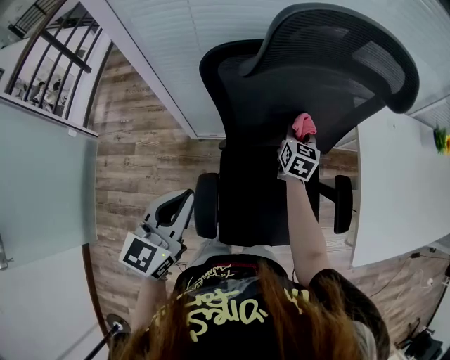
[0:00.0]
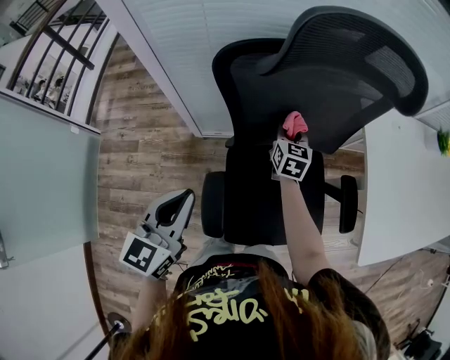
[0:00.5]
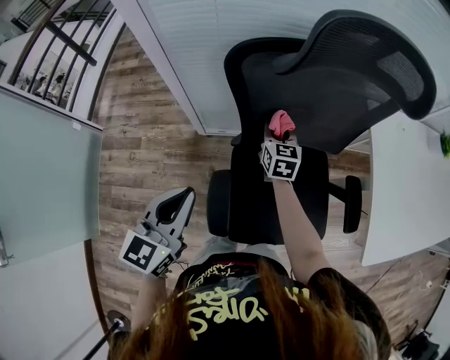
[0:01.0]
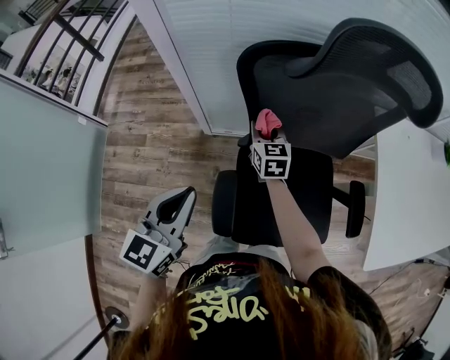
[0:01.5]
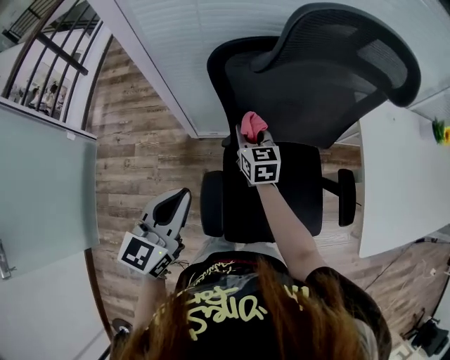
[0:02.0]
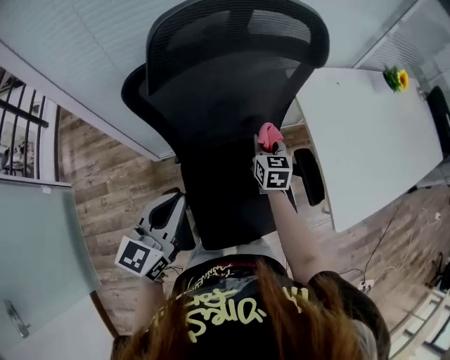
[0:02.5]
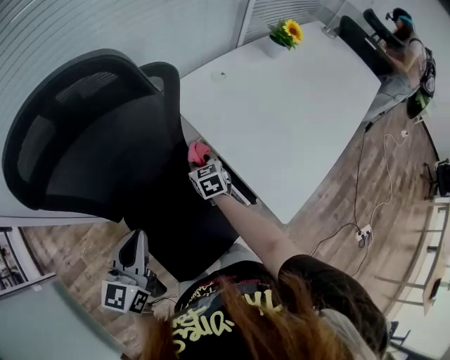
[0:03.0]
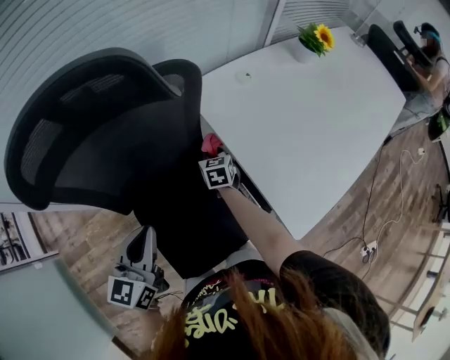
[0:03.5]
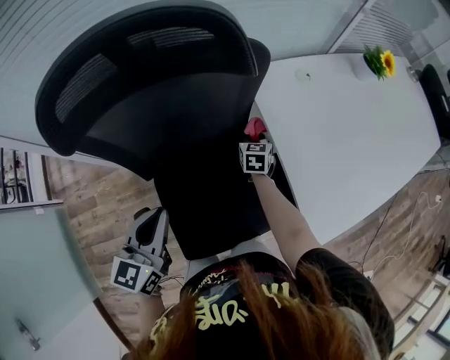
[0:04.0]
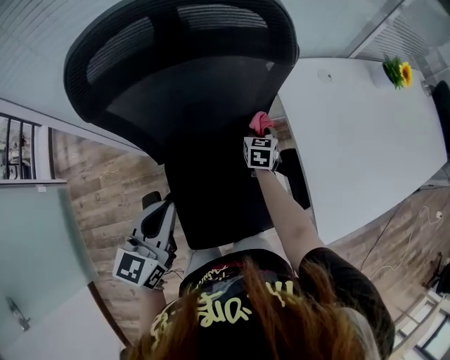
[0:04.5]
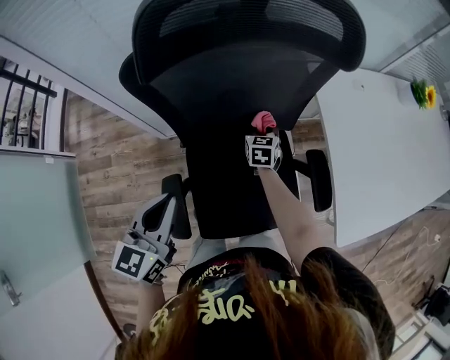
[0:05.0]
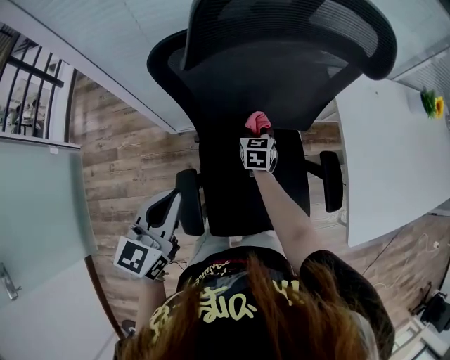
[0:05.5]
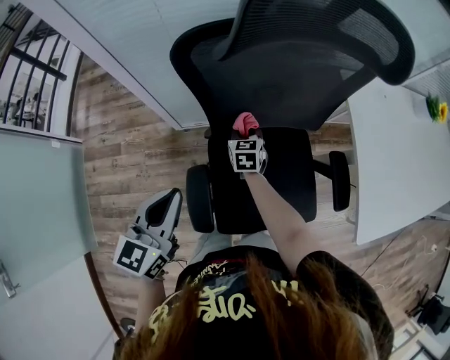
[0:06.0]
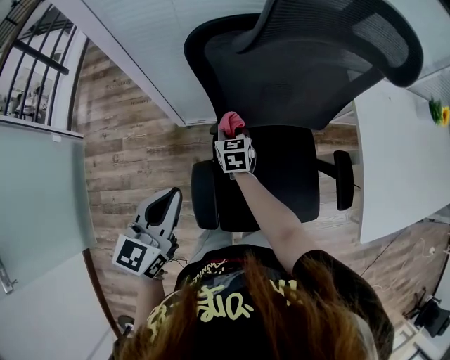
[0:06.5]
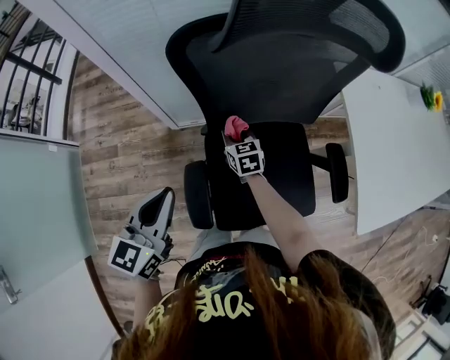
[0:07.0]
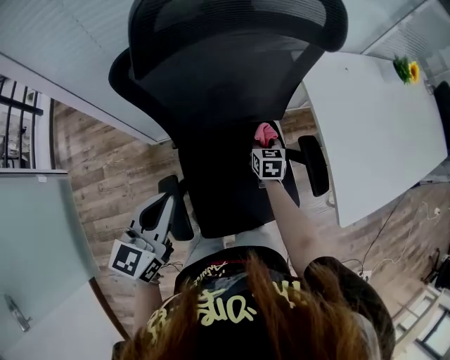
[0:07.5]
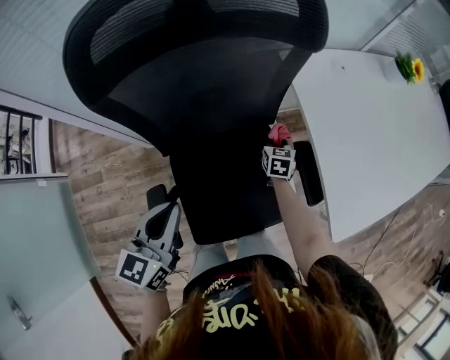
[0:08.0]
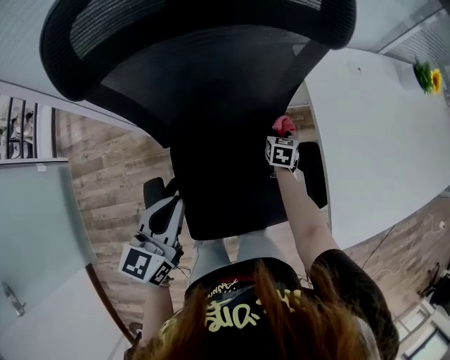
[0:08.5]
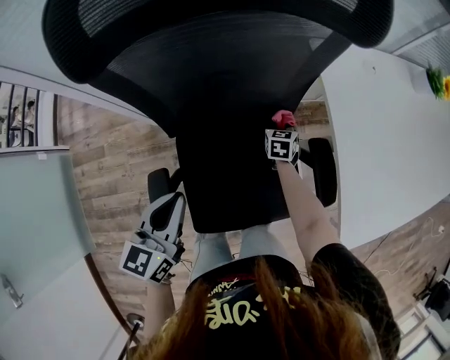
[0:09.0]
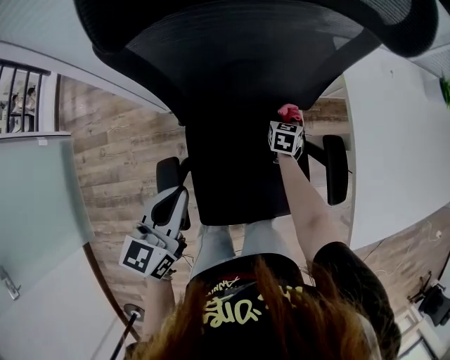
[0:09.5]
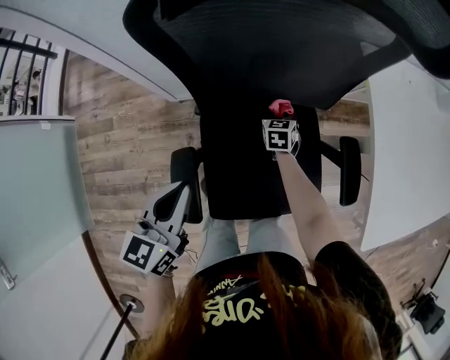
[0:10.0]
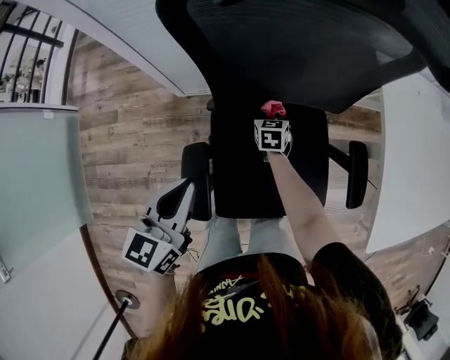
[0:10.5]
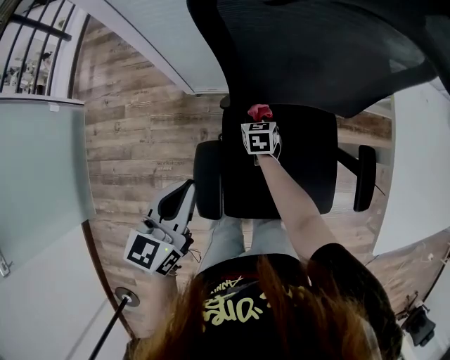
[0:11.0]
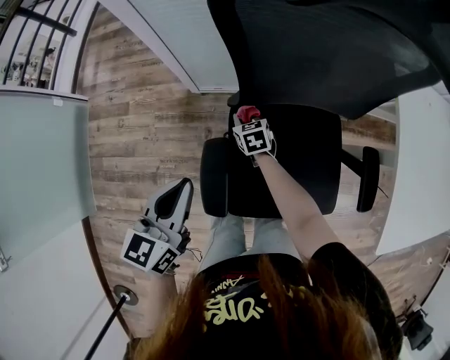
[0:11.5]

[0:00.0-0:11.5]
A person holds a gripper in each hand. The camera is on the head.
0:00.0 to 0:02.0: The right gripper goes approximately 20 cm to the left, and turns by some 20 degrees.
0:02.0 to 0:04.0: The left gripper moves approximately 25 cm, while the right gripper ends up approximately 40 cm from where it was, and turns by roughly 40 degrees.
0:04.0 to 0:06.0: The left gripper travels to the left and backward by roughly 20 cm. Meanwhile the right gripper shifts some 30 cm to the left, and rotates approximately 20 degrees.
0:06.0 to 0:07.5: The left gripper goes roughly 10 cm to the right. Meanwhile the right gripper heads to the right, covering approximately 20 cm.
0:07.5 to 0:09.5: The left gripper travels downward by about 5 cm; the right gripper is displaced downward and forward by some 10 cm.
0:09.5 to 0:11.5: The right gripper shifts by approximately 35 cm, and rotates approximately 40 degrees; the left gripper ends up some 15 cm from where it was.

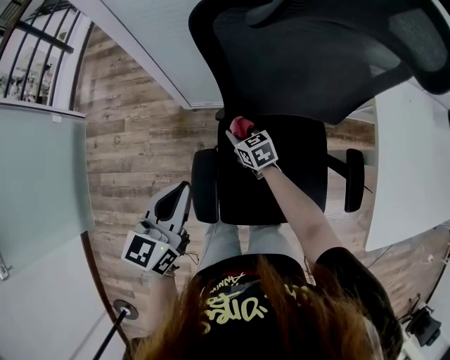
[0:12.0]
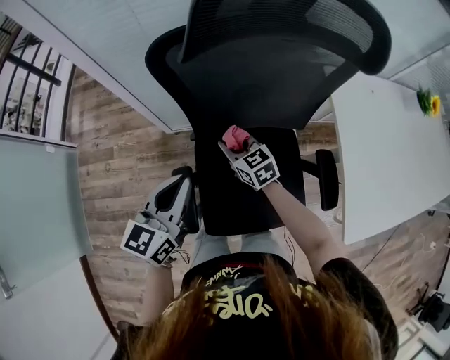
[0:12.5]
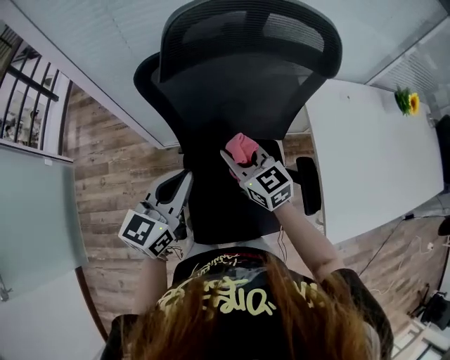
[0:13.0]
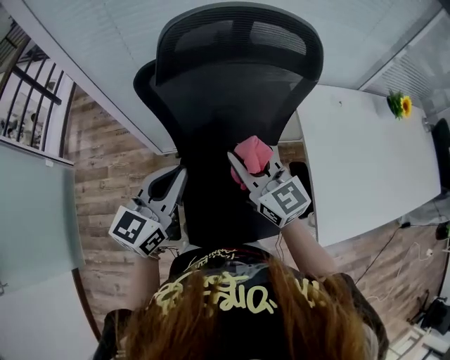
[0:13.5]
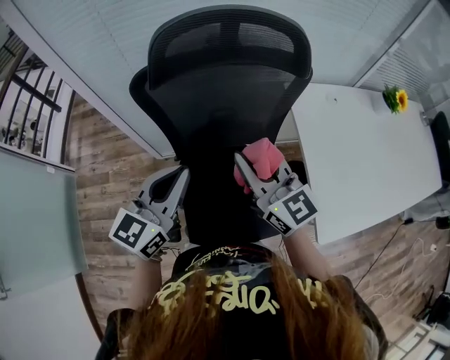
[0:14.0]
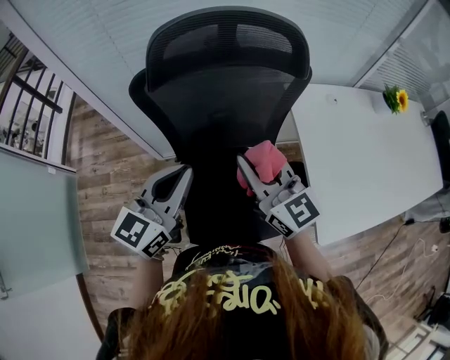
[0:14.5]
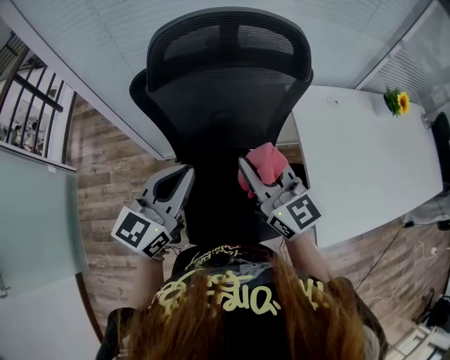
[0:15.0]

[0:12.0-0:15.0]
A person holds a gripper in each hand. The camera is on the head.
0:12.0 to 0:13.5: The right gripper shifts some 40 cm upward and to the right, and tips its fingers upward by some 40 degrees, while the left gripper is displaced to the right and upward by some 20 cm.
0:13.5 to 0:15.0: The right gripper moves some 5 cm.

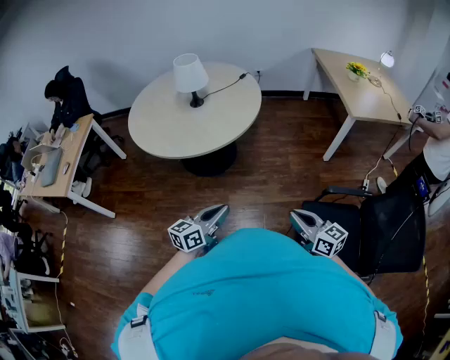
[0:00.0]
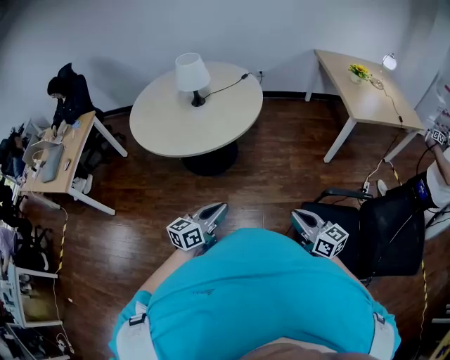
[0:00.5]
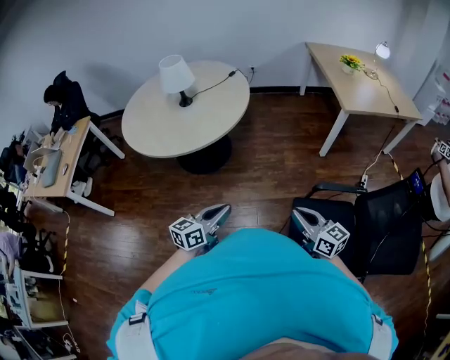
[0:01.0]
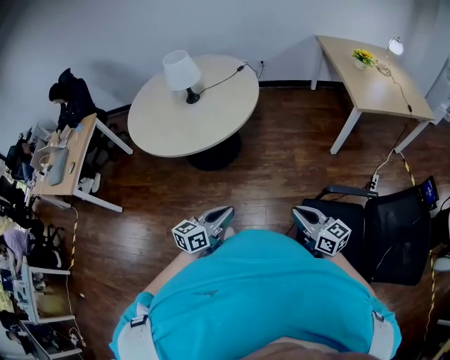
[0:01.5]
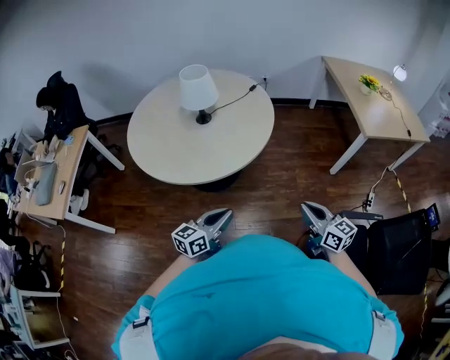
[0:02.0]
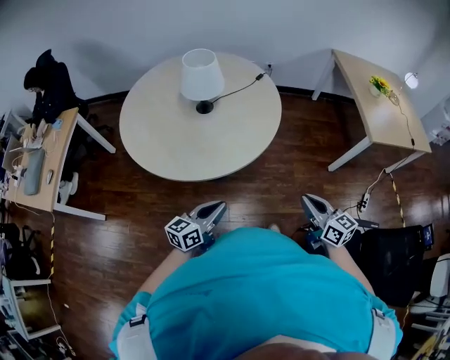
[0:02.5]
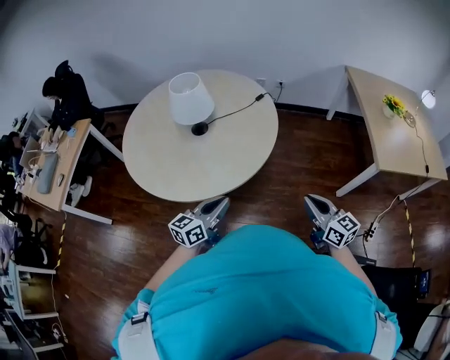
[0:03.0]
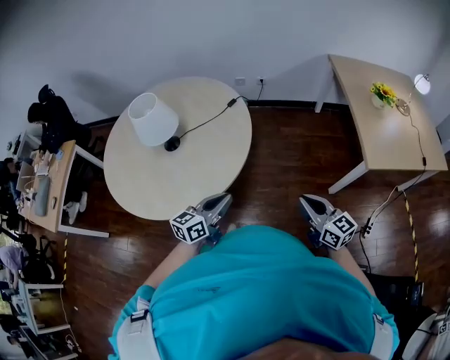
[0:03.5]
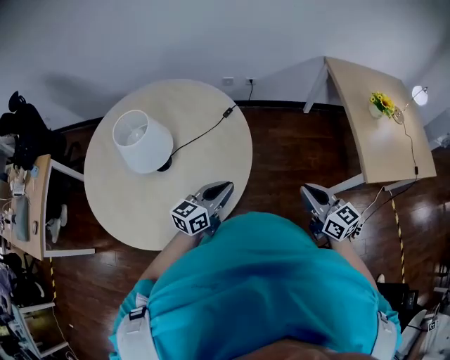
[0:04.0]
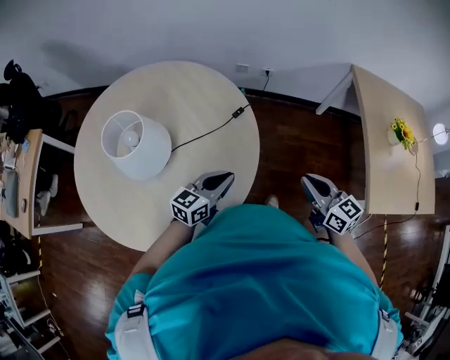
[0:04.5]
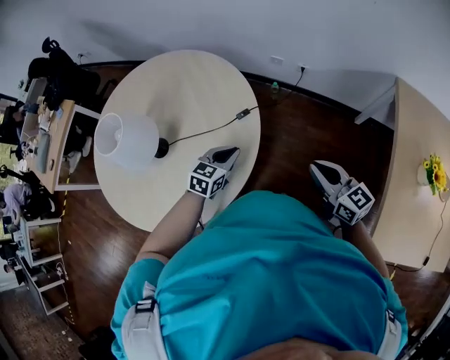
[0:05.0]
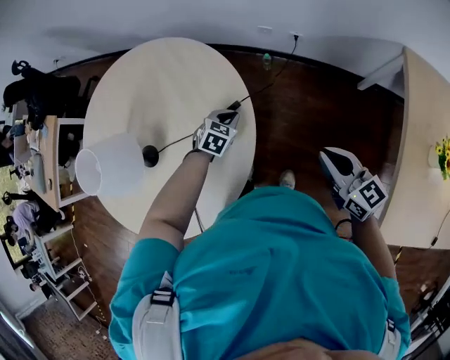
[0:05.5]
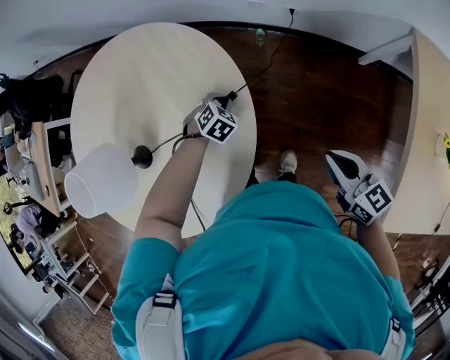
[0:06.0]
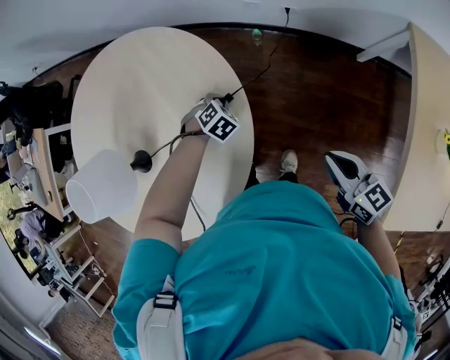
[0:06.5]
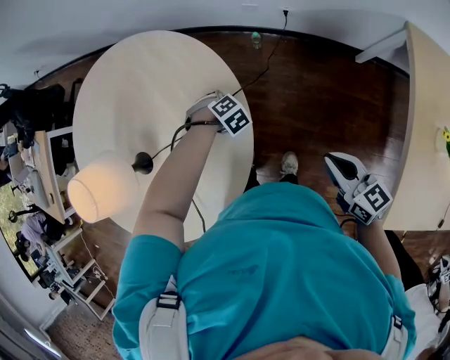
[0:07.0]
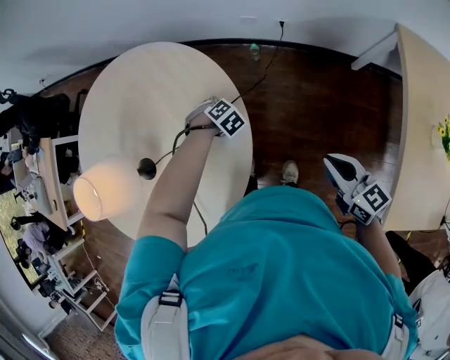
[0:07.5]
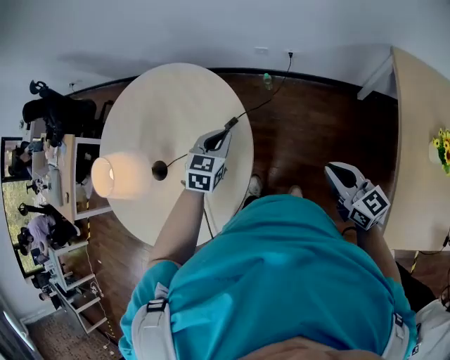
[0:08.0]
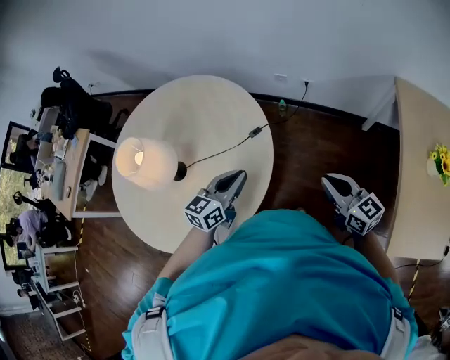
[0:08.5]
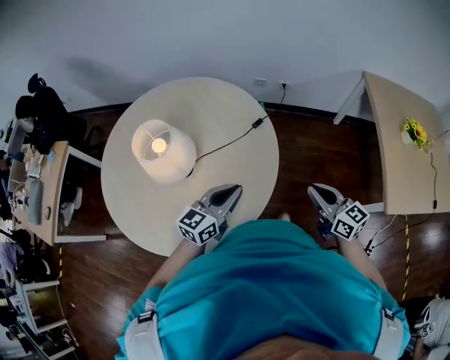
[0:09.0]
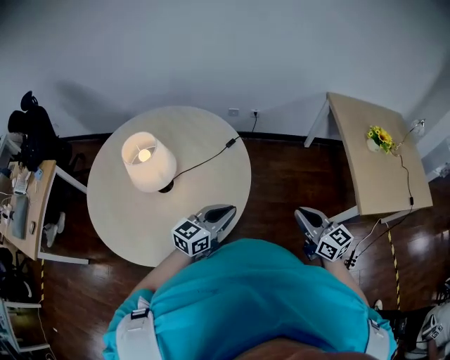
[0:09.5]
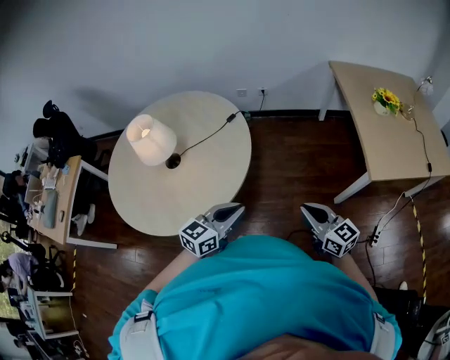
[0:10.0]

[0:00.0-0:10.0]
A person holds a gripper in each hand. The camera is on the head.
0:00.0 to 0:02.0: The left gripper moves forward and to the left, some 20 cm, while the right gripper shifts about 20 cm forward.
0:02.0 to 0:04.0: The two grippers travel together, forward, some 60 cm.
0:04.0 to 0:06.0: The pair of grippers is taken about 50 cm. The right gripper swivels roughly 20 degrees. Meanwhile the left gripper points its fingers approximately 70 degrees further downward.
0:06.0 to 0:08.0: The left gripper heads upward, covering roughly 30 cm, and tilts its fingers about 30 degrees upward, while the right gripper travels upward by roughly 15 cm.
0:08.0 to 0:10.0: The pair of grippers is taken backward, about 70 cm. The left gripper angles its fingers upward, by some 30 degrees.

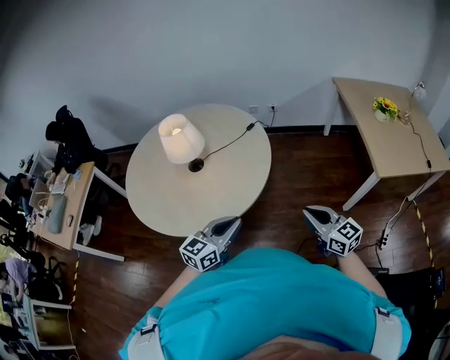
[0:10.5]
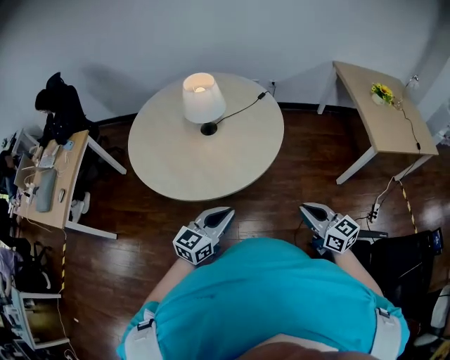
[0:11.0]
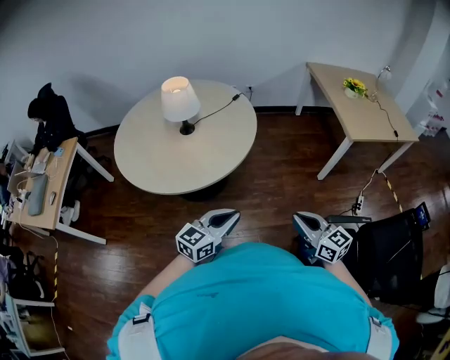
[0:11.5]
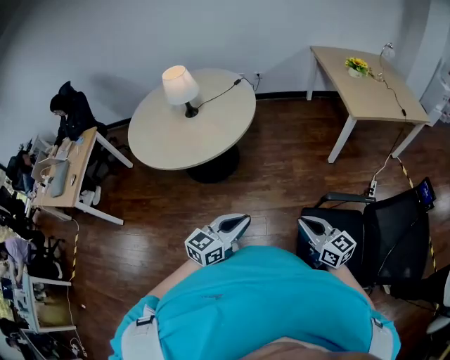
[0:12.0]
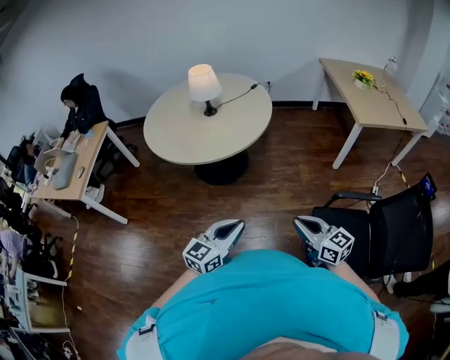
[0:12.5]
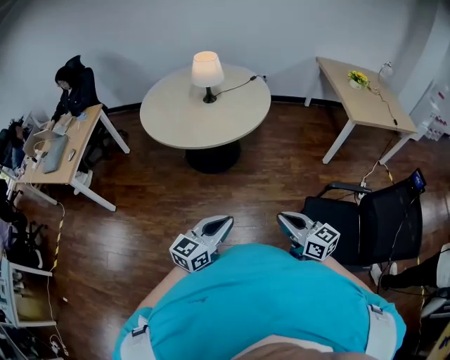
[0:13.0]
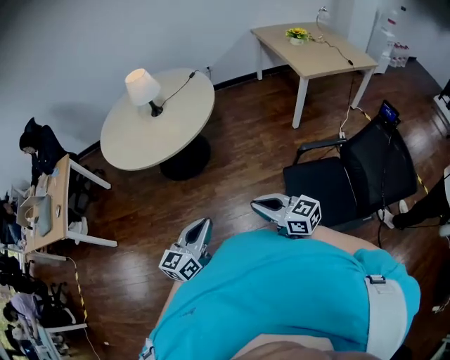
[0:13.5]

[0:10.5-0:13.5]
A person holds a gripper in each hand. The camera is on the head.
0:10.5 to 0:12.0: The pair of grippers is taken backward, some 40 cm.
0:12.0 to 0:13.5: The grippers both shift to the left and backward by about 25 cm.
